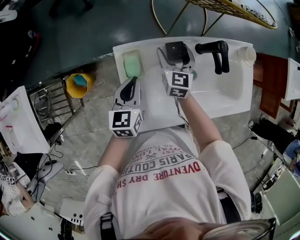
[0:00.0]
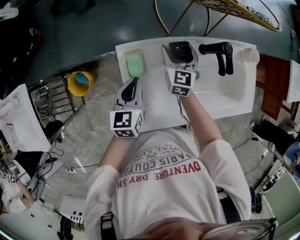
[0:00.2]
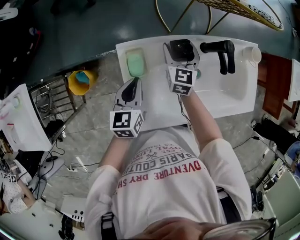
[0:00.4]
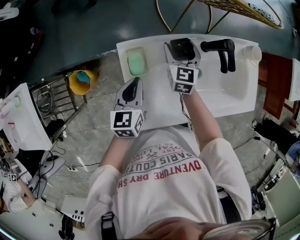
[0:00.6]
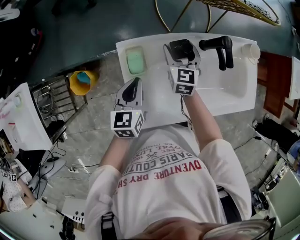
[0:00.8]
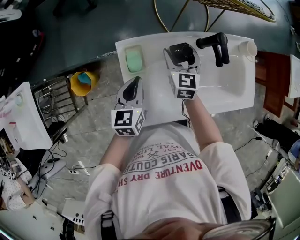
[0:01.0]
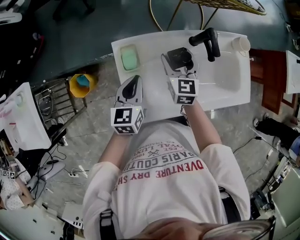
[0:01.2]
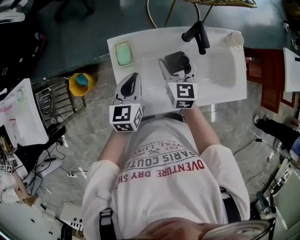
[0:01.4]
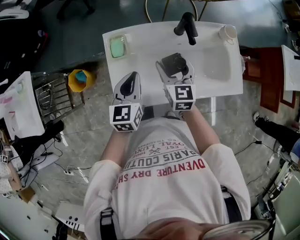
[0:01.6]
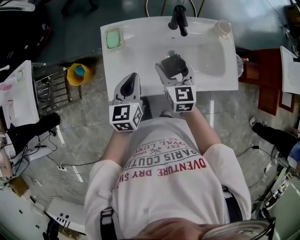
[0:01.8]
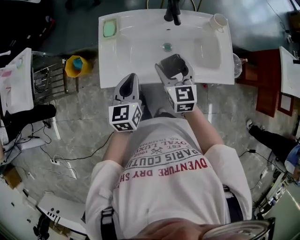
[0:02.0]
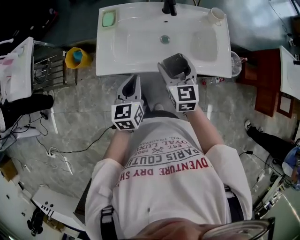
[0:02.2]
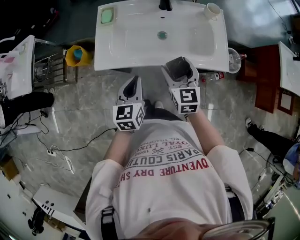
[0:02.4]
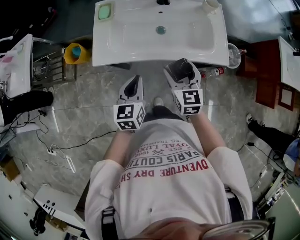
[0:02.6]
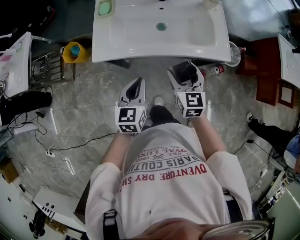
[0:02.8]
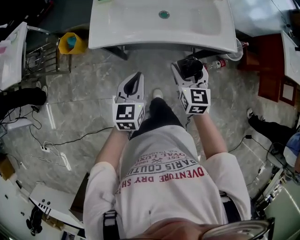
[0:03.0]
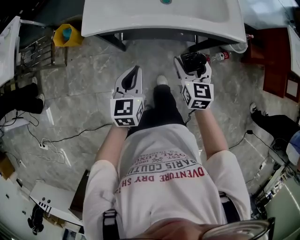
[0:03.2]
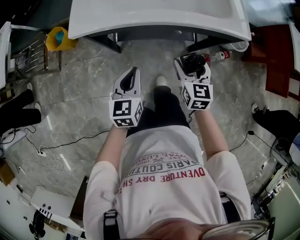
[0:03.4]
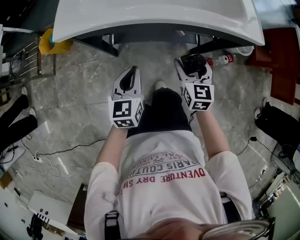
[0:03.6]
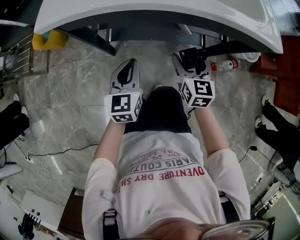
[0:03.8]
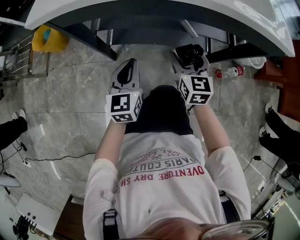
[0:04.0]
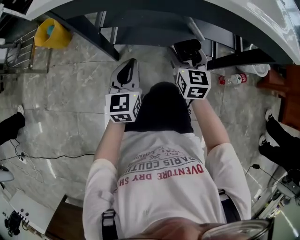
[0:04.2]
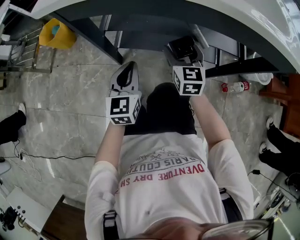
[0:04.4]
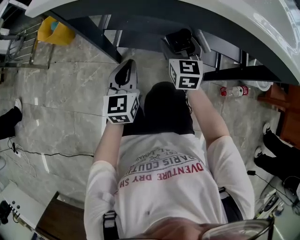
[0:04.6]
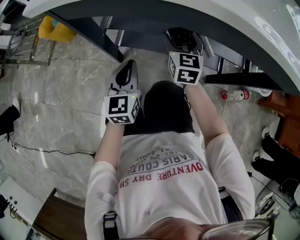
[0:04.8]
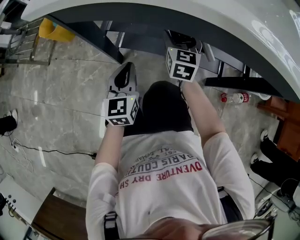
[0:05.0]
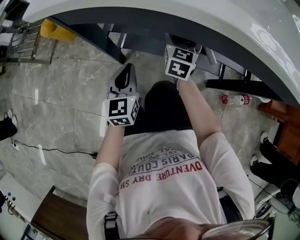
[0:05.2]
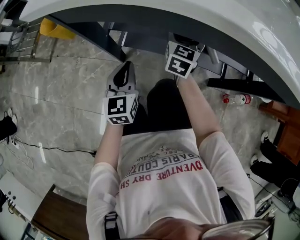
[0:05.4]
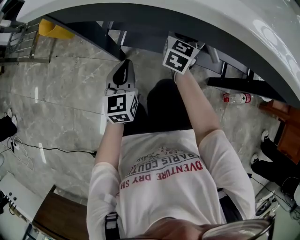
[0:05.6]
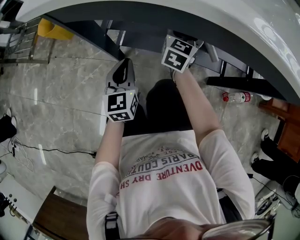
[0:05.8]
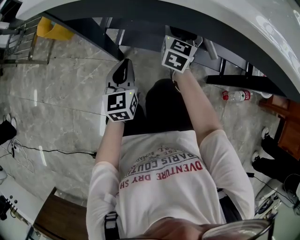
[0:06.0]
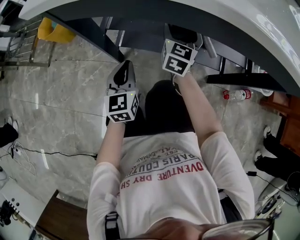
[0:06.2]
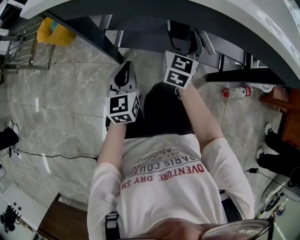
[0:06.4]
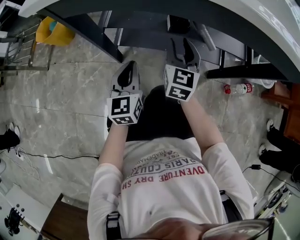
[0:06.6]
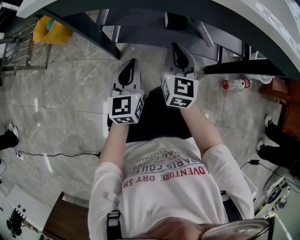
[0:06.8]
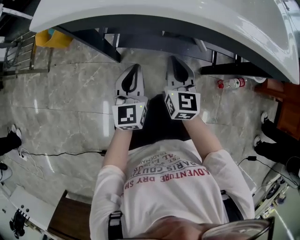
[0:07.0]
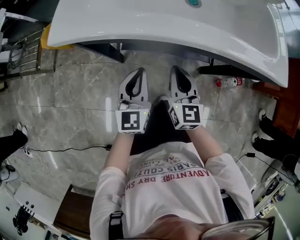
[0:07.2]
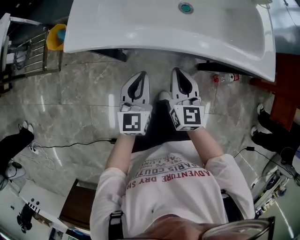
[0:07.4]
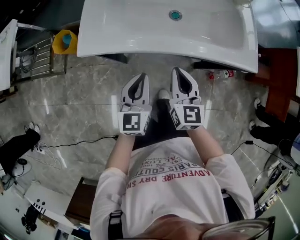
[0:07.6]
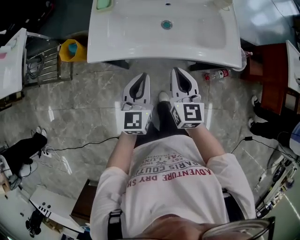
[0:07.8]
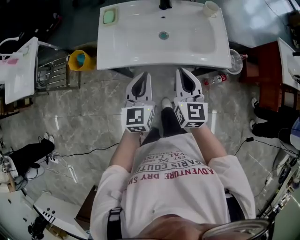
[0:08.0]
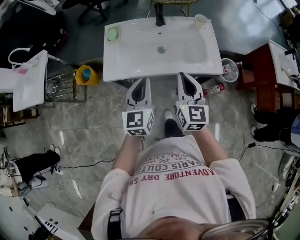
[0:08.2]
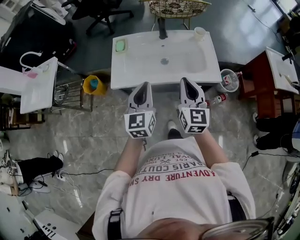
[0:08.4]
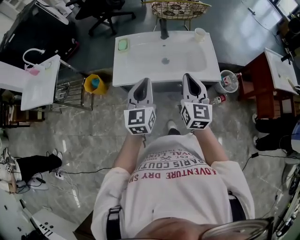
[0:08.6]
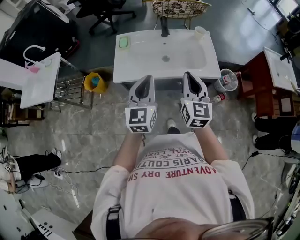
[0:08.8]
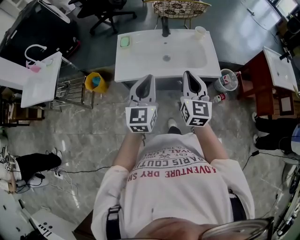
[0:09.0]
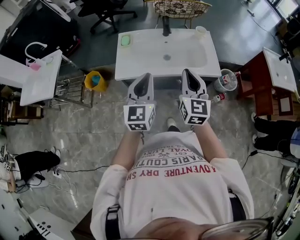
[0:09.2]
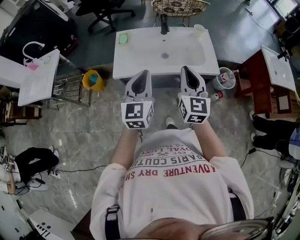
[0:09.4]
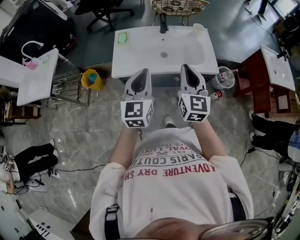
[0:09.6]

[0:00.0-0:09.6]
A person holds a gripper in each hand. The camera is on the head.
0:00.0 to 0:01.6: The left gripper moves to the right, backward and upward, some 15 cm; the right gripper travels backward, upward and to the right by approximately 20 cm.
0:01.6 to 0:03.2: The right gripper heads backward and to the right, covering some 35 cm, while the left gripper is displaced backward by some 30 cm.
0:03.2 to 0:04.8: The right gripper travels downward and forward by some 35 cm; the left gripper goes about 30 cm downward.
0:06.4 to 0:08.0: Both grippers move upward, about 50 cm. The right gripper closes up.
0:08.0 to 0:09.6: The grippers both shift upward by roughly 15 cm.

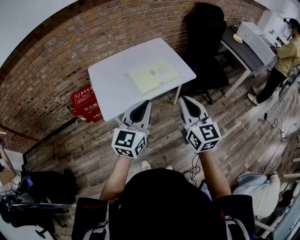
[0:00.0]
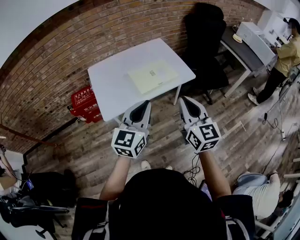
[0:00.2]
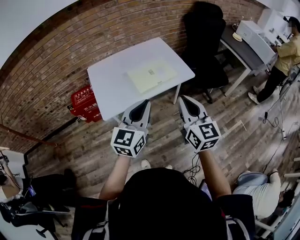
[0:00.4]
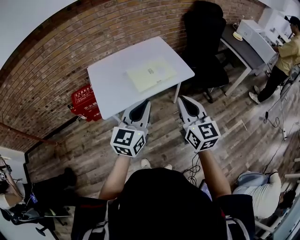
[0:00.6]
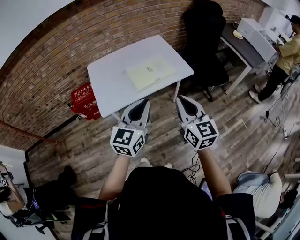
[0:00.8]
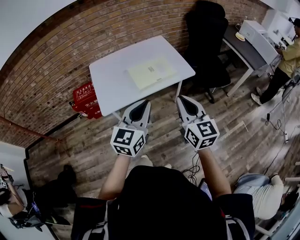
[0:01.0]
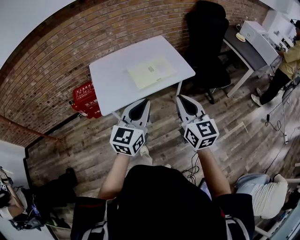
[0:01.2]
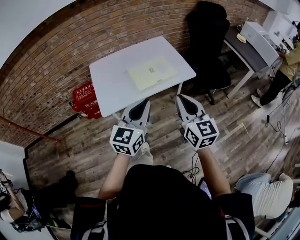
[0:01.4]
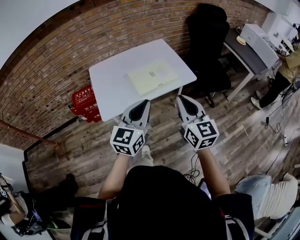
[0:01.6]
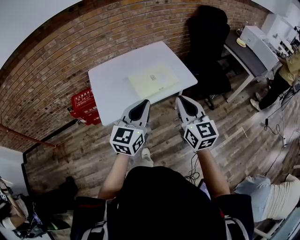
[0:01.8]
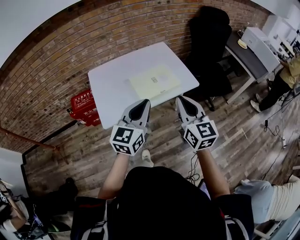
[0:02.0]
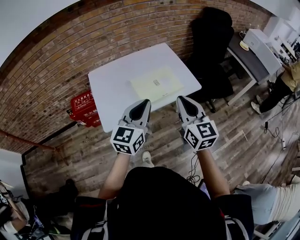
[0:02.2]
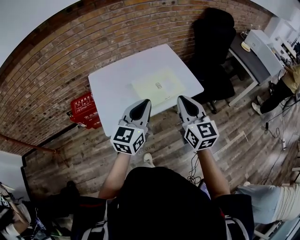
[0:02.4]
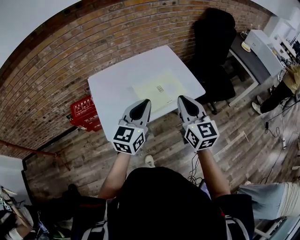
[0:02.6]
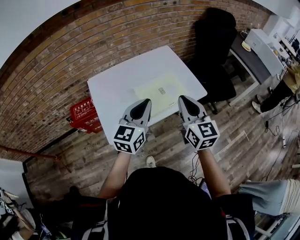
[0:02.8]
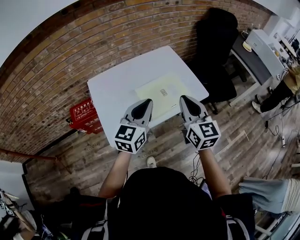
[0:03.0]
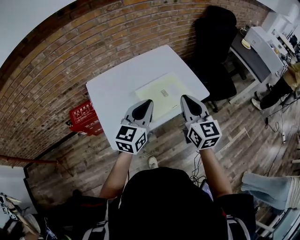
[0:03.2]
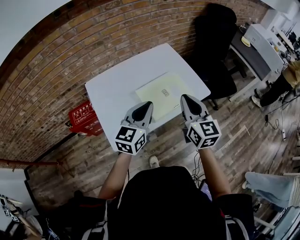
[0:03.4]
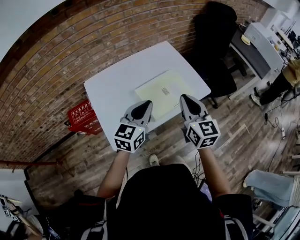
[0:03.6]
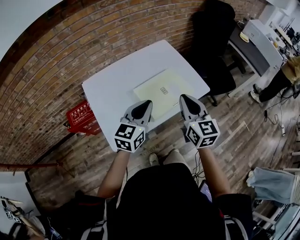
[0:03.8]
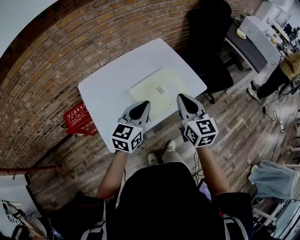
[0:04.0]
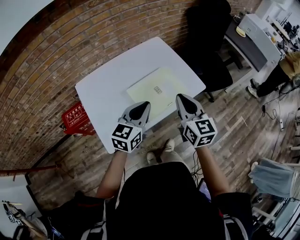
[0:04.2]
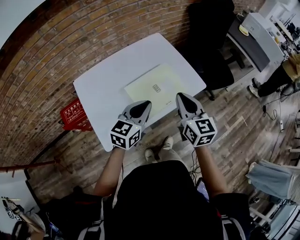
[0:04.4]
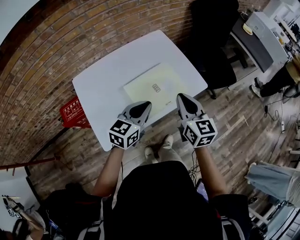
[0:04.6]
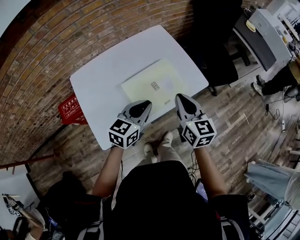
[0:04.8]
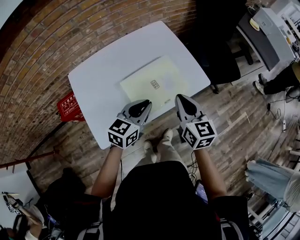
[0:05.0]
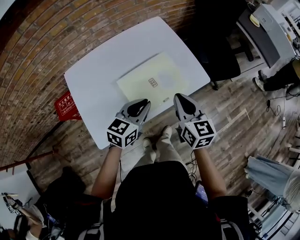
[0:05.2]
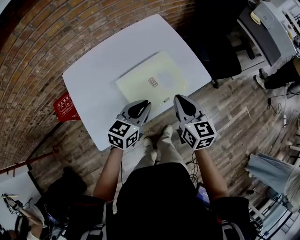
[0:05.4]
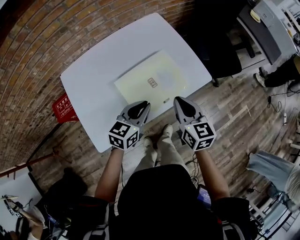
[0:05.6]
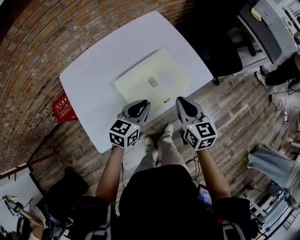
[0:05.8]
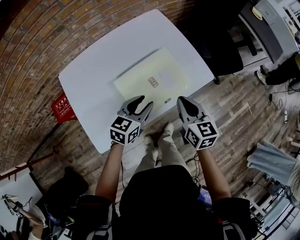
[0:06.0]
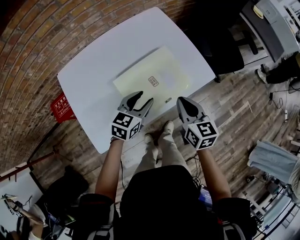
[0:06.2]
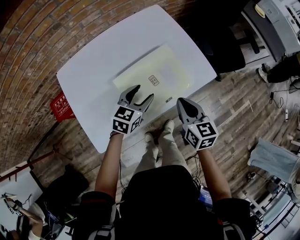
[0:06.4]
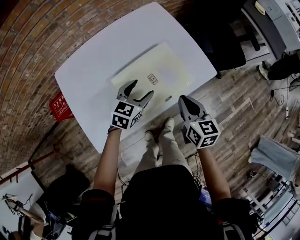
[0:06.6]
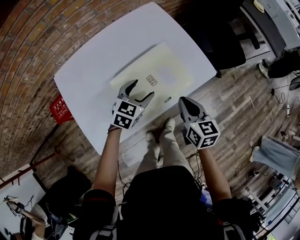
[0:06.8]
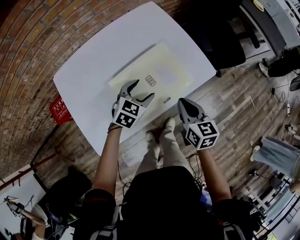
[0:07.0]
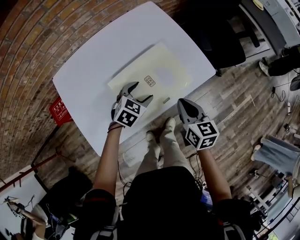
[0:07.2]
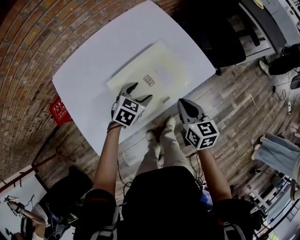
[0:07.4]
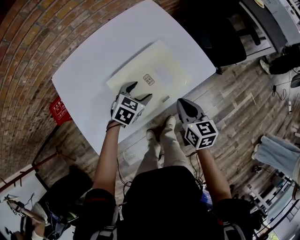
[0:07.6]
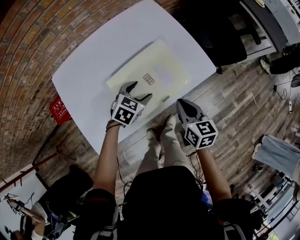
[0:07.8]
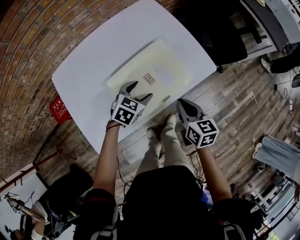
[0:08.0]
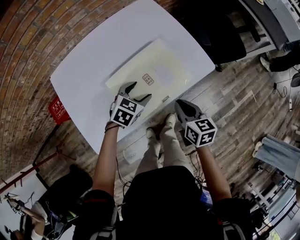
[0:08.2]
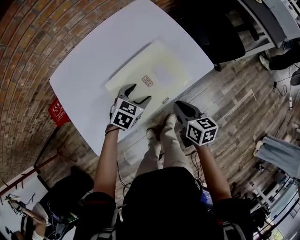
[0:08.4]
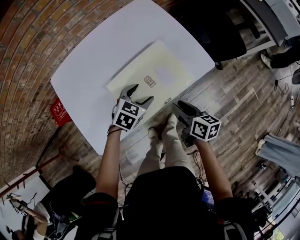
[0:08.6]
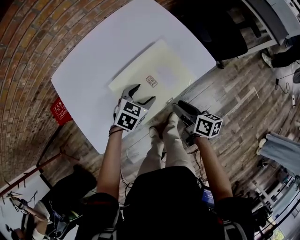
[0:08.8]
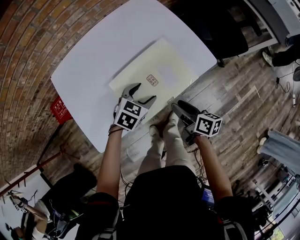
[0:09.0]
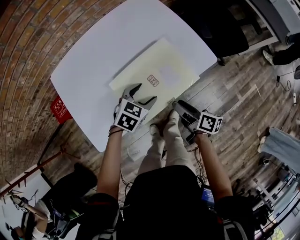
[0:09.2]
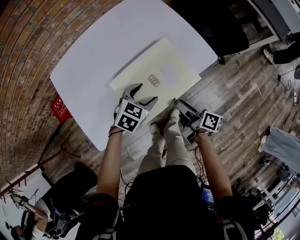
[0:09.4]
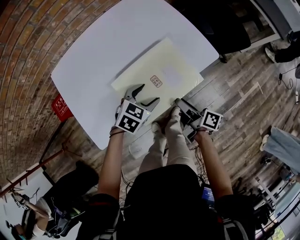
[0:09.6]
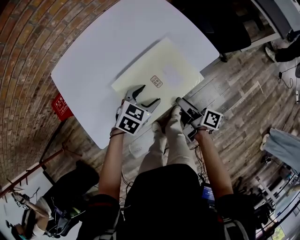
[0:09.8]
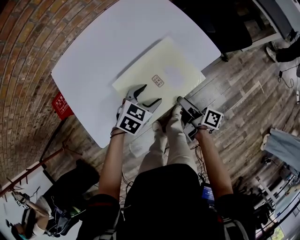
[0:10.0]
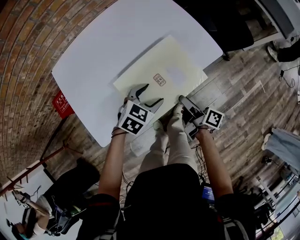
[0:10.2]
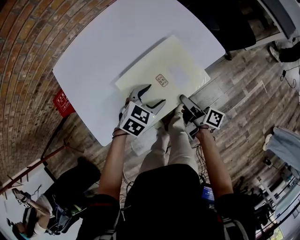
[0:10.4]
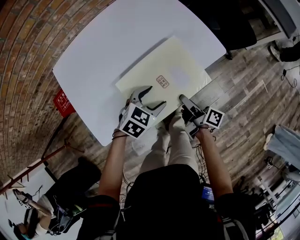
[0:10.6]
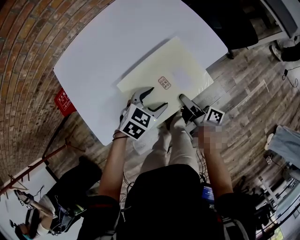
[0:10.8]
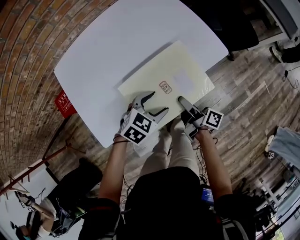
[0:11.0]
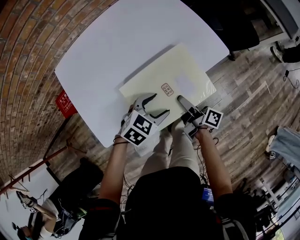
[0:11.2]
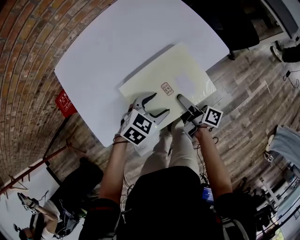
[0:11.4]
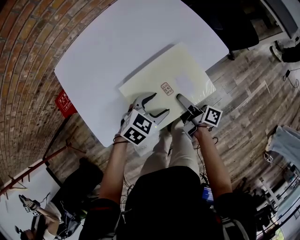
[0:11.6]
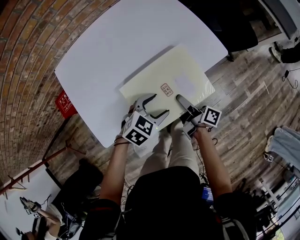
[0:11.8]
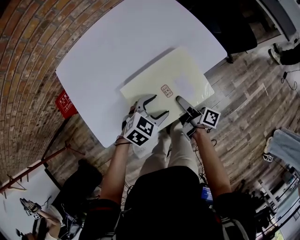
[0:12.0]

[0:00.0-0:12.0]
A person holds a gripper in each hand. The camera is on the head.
0:00.0 to 0:01.6: The grippers move only a little.
0:01.6 to 0:03.0: The two grippers go about 20 cm forward and to the left.
0:03.0 to 0:04.4: The grippers both shift downward and forward by about 10 cm.
0:04.4 to 0:06.0: The right gripper travels downward by roughly 15 cm. The left gripper moves downward and forward, approximately 15 cm, and opens up.
0:06.0 to 0:07.6: The two grippers go about 10 cm downward. The left gripper changes its angle by roughly 30 degrees, and opens.
0:07.6 to 0:09.0: The right gripper travels downward by approximately 5 cm, changes its angle by roughly 40 degrees, and opens its fingers.
0:09.0 to 0:10.4: The right gripper changes its angle by some 30 degrees. Meanwhile the left gripper moves about 5 cm.
0:10.4 to 0:12.0: There are only small adjustments of the grippers.

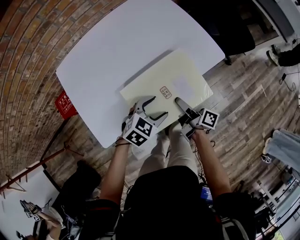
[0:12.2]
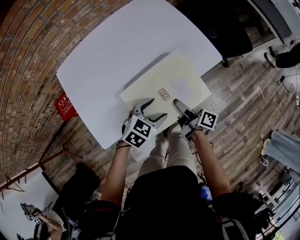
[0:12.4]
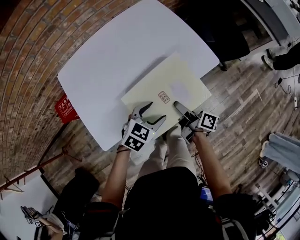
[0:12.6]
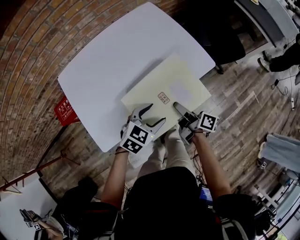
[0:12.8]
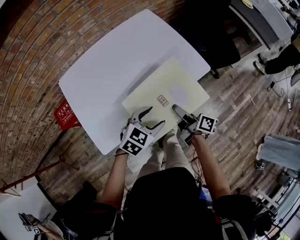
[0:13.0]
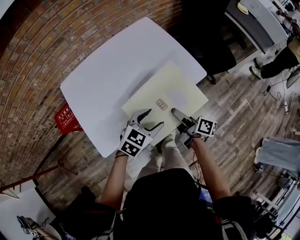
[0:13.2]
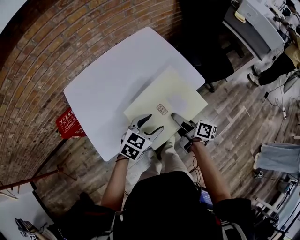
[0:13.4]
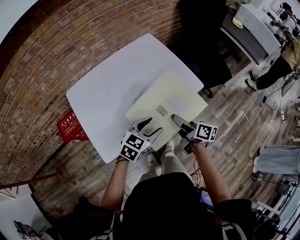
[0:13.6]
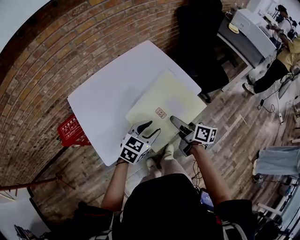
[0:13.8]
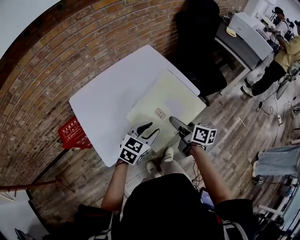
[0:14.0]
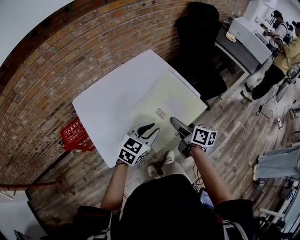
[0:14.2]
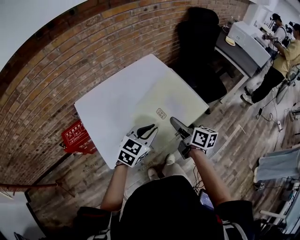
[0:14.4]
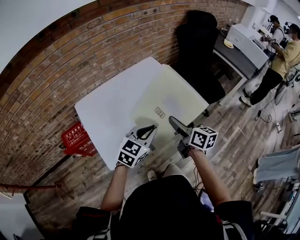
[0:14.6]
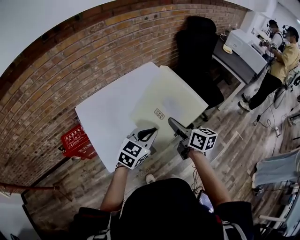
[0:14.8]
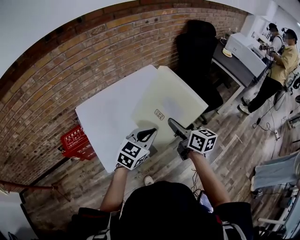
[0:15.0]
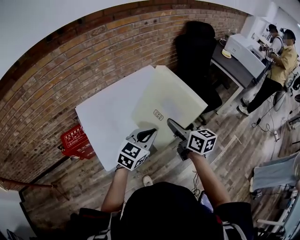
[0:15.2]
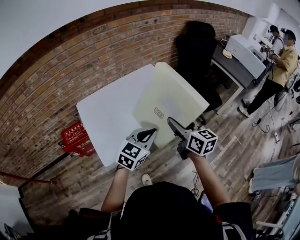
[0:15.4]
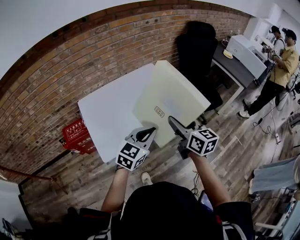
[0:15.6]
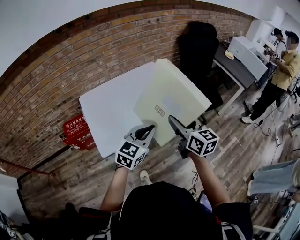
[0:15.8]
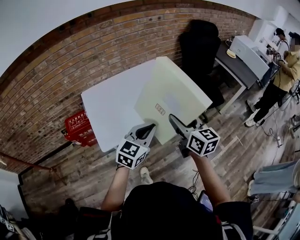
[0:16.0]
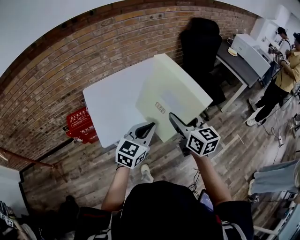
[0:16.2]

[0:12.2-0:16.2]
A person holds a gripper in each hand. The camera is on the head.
0:12.2 to 0:13.6: The grippers both shift upward by approximately 15 cm. The right gripper turns by about 20 degrees.
0:13.6 to 0:14.8: Both grippers move upward, some 15 cm. The right gripper changes its angle by roughly 30 degrees; the left gripper closes.
0:14.8 to 0:16.2: The right gripper travels backward, upward and to the right by some 15 cm, while the left gripper moves backward, to the right and upward, roughly 15 cm.
